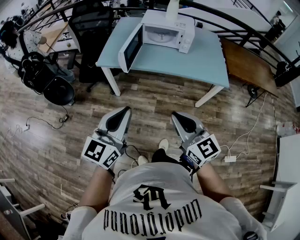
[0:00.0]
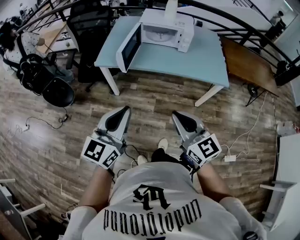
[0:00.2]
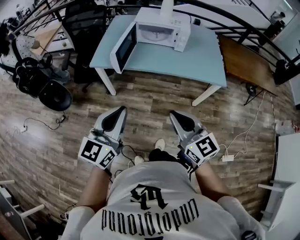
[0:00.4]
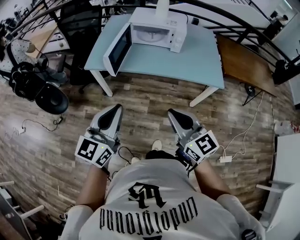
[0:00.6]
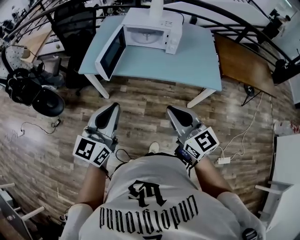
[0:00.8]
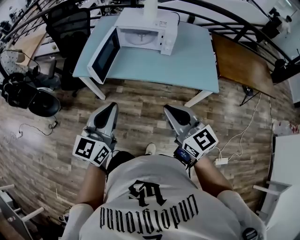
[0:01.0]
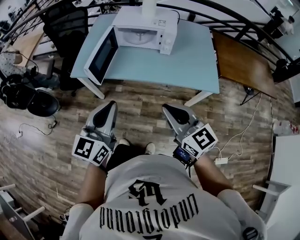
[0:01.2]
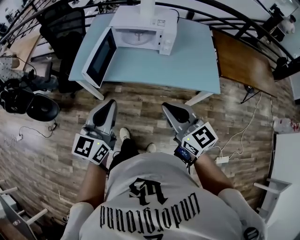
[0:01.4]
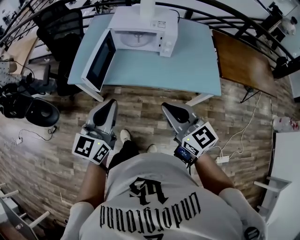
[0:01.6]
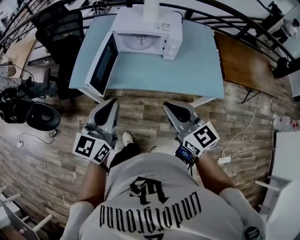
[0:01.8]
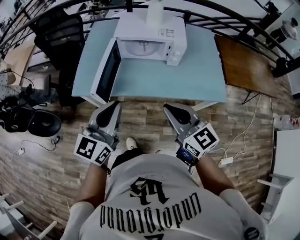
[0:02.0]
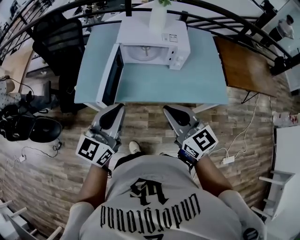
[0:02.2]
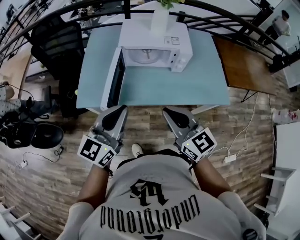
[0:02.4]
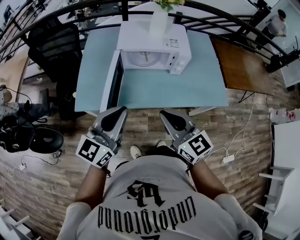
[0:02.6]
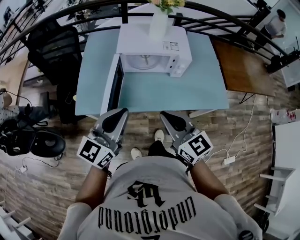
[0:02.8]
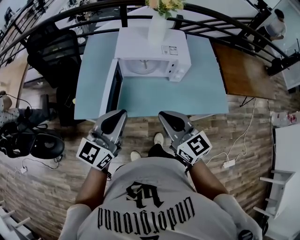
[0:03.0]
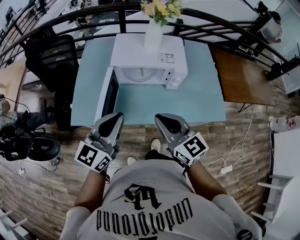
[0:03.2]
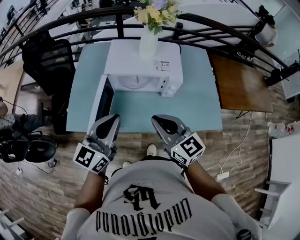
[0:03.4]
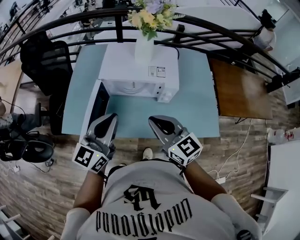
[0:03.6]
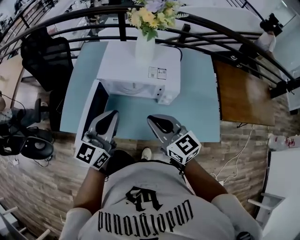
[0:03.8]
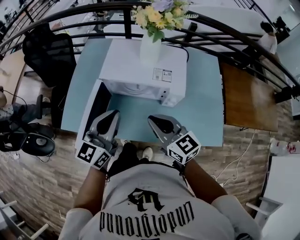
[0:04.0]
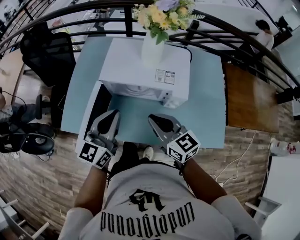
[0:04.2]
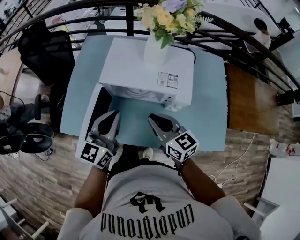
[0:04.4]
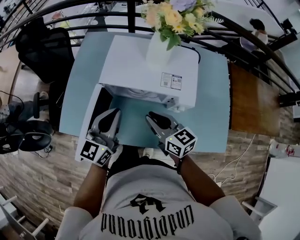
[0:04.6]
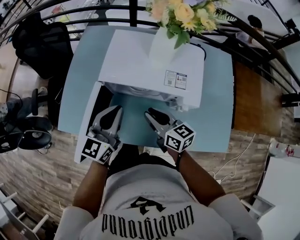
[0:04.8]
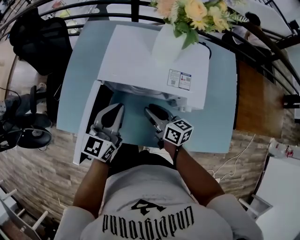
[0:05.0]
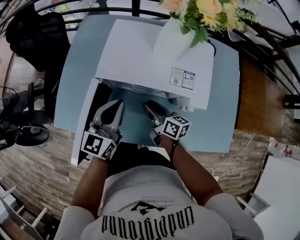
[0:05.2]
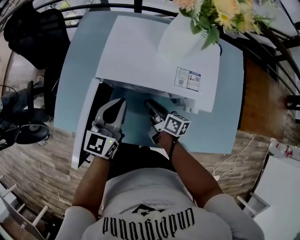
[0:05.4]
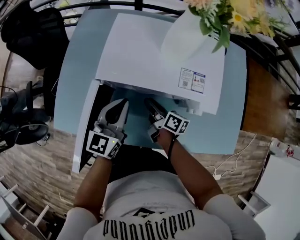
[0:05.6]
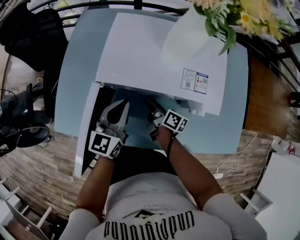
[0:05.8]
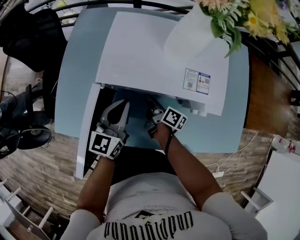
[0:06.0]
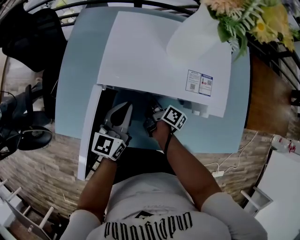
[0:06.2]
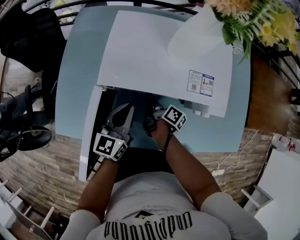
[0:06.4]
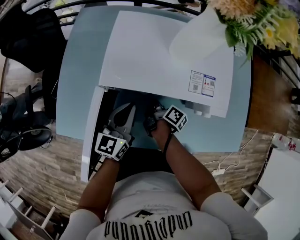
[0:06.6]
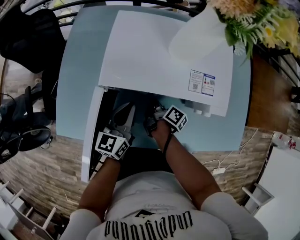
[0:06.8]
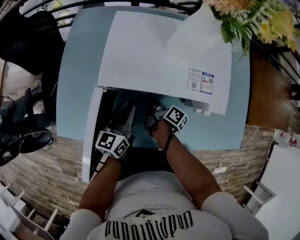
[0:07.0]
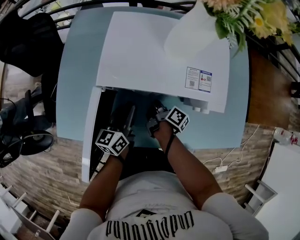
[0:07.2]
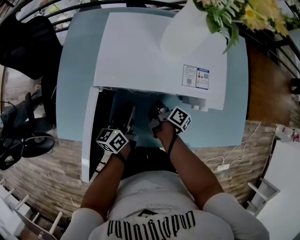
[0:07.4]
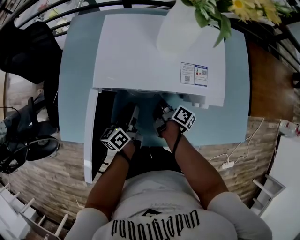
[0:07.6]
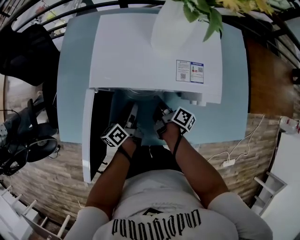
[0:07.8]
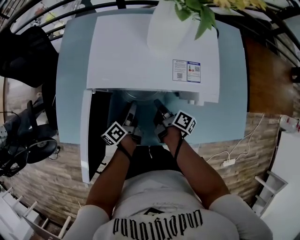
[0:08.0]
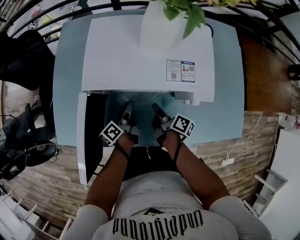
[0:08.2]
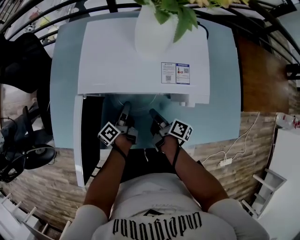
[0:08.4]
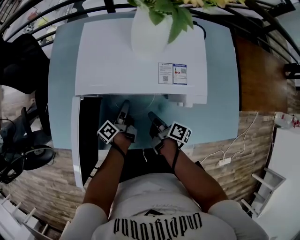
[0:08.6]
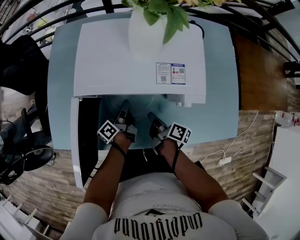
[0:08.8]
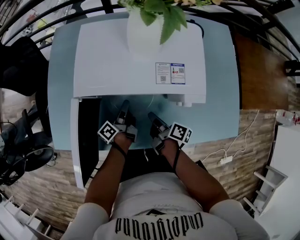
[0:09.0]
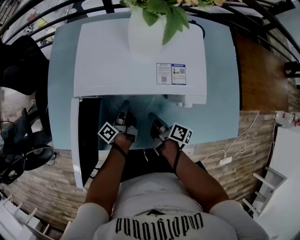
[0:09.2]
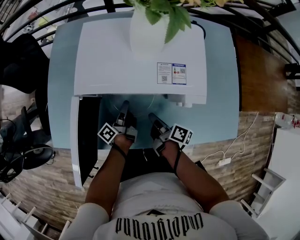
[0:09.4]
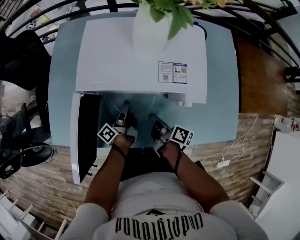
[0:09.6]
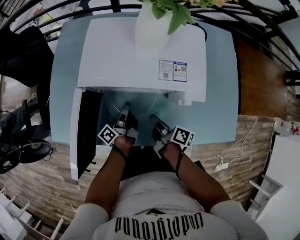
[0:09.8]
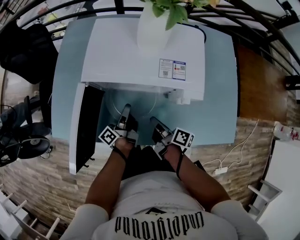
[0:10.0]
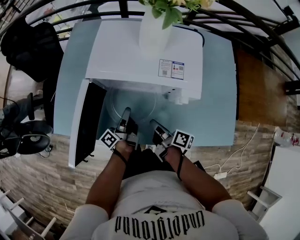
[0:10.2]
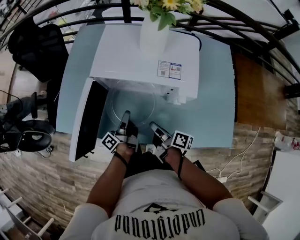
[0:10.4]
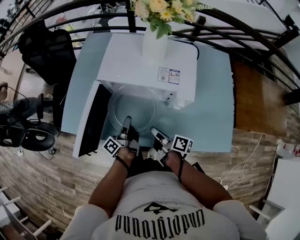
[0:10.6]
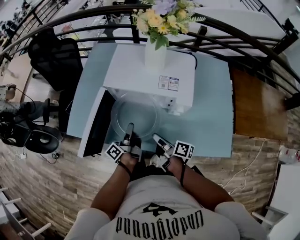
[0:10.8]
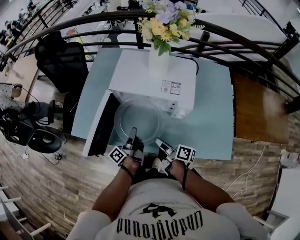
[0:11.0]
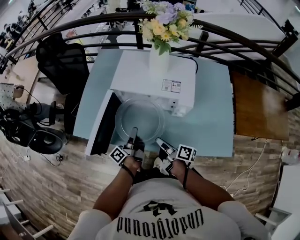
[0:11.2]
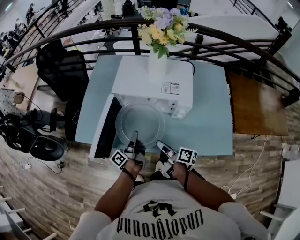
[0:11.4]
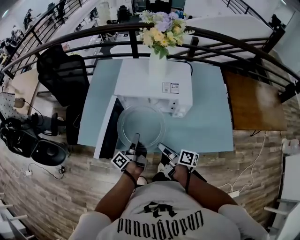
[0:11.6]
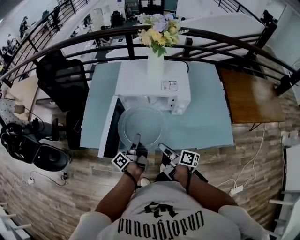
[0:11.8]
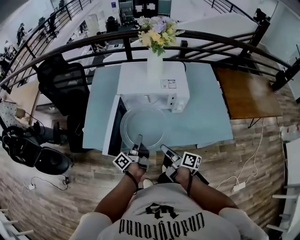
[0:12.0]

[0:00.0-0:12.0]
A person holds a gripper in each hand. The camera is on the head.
0:00.0 to 0:01.6: Both grippers travel together forward and to the right, approximately 25 cm.
0:01.6 to 0:03.0: Both grippers travel together forward and to the left, approximately 20 cm.
0:03.0 to 0:04.4: The left gripper is displaced forward, downward and to the right by some 20 cm, while the right gripper is displaced forward and downward by approximately 25 cm.
0:04.4 to 0:06.0: The left gripper shifts approximately 20 cm downward and forward; the right gripper goes roughly 30 cm downward and forward, twists about 60 degrees clockwise, seen from behind, and opens its fingers.
0:06.0 to 0:07.6: The right gripper ends up roughly 5 cm from where it was, and closes its fingers; the left gripper shifts approximately 10 cm downward, rotates around the line of its fingers by about 40 degrees, counterclockwise from behind, and opens up.
0:07.6 to 0:09.0: The left gripper ends up some 5 cm from where it was, and turns by some 30 degrees. Meanwhile the right gripper shifts roughly 10 cm backward.
0:09.0 to 0:10.4: Both grippers travel together backward and upward, some 10 cm.
0:10.4 to 0:12.0: The right gripper moves backward, upward and to the left, about 20 cm; the left gripper travels upward, backward and to the left by about 20 cm.

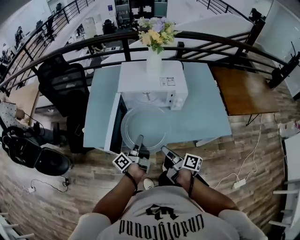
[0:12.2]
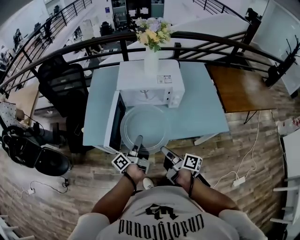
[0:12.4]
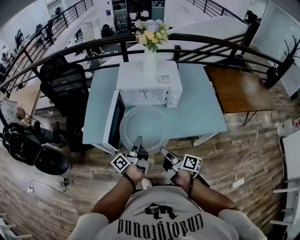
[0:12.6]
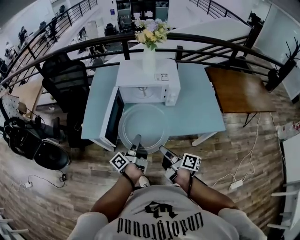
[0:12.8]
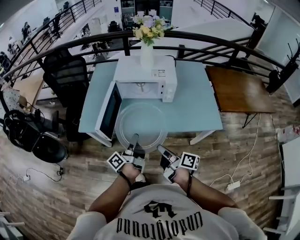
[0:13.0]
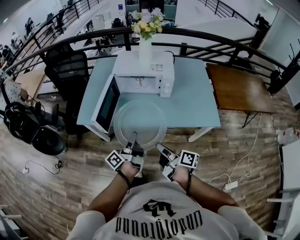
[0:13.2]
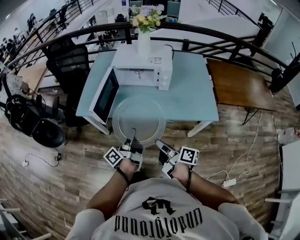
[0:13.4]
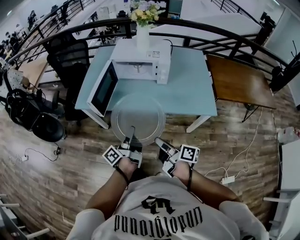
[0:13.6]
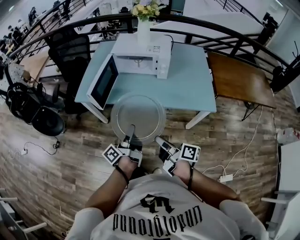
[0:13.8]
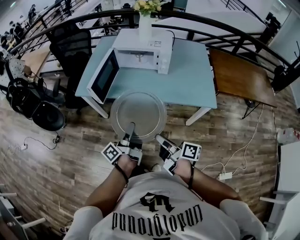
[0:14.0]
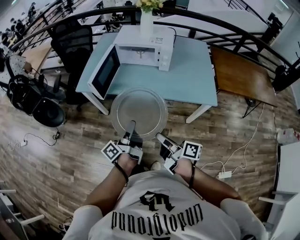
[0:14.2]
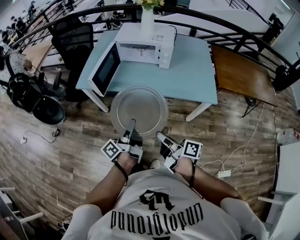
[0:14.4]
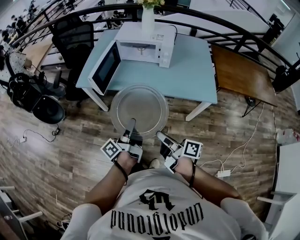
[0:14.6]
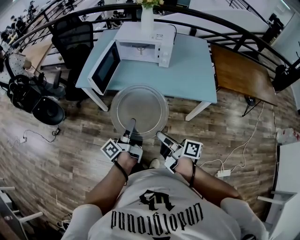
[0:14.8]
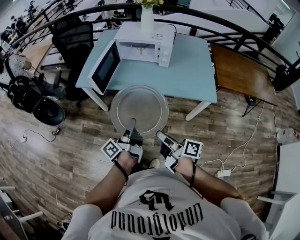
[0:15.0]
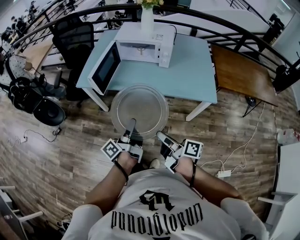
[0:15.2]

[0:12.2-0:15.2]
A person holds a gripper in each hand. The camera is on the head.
0:12.2 to 0:13.8: The grippers both shift backward by about 25 cm.
0:13.8 to 0:15.2: The grippers stay close to where they were, moving slightly.

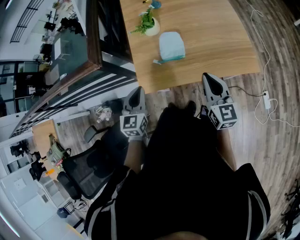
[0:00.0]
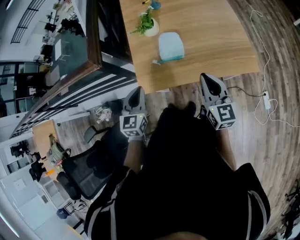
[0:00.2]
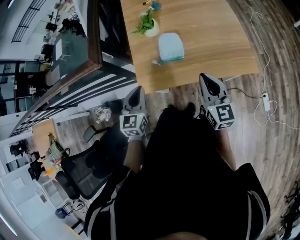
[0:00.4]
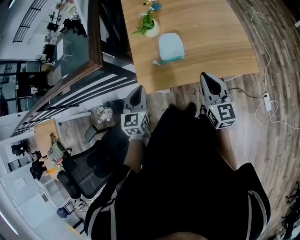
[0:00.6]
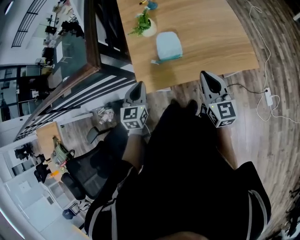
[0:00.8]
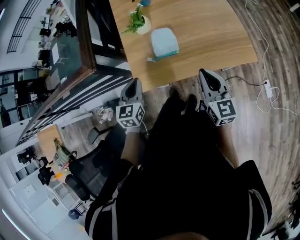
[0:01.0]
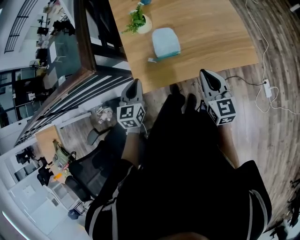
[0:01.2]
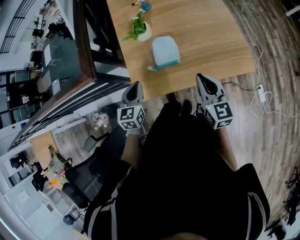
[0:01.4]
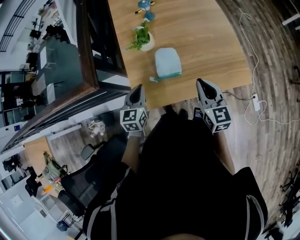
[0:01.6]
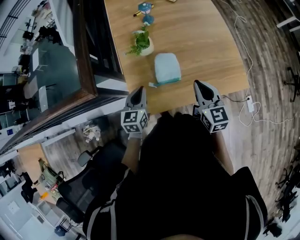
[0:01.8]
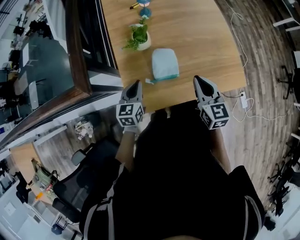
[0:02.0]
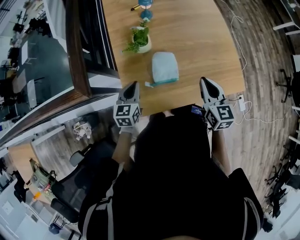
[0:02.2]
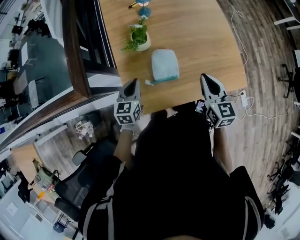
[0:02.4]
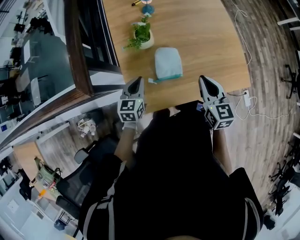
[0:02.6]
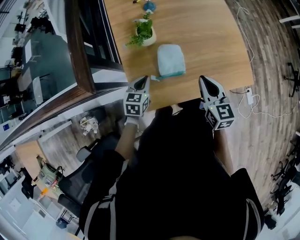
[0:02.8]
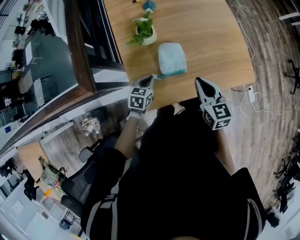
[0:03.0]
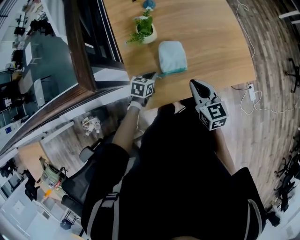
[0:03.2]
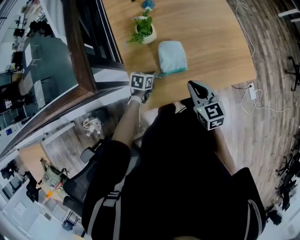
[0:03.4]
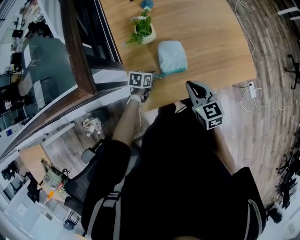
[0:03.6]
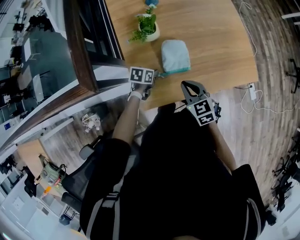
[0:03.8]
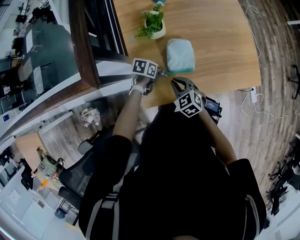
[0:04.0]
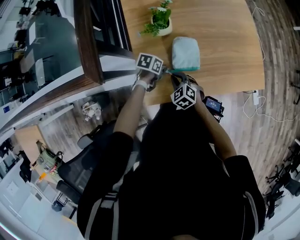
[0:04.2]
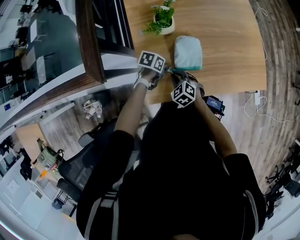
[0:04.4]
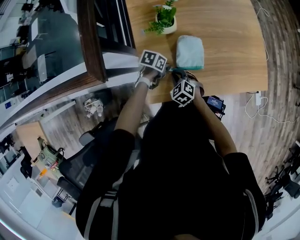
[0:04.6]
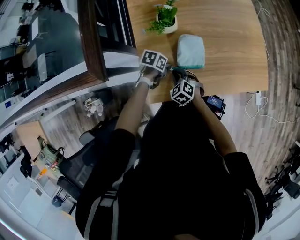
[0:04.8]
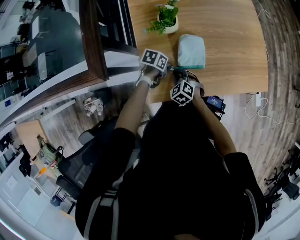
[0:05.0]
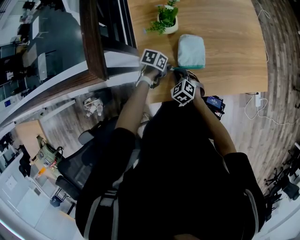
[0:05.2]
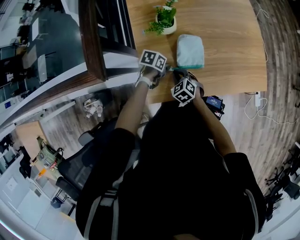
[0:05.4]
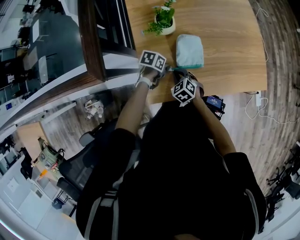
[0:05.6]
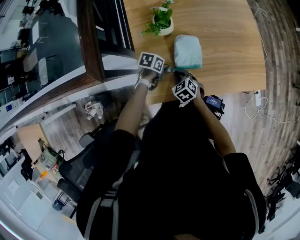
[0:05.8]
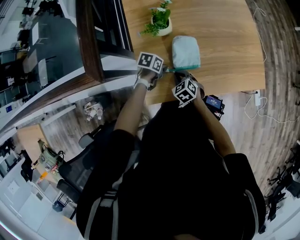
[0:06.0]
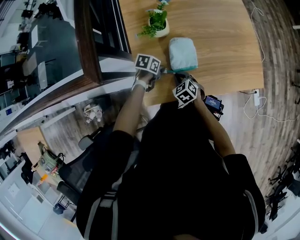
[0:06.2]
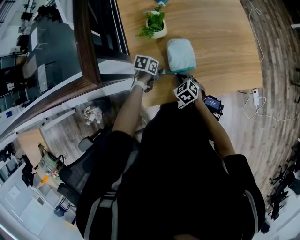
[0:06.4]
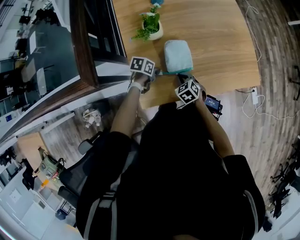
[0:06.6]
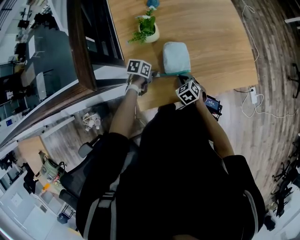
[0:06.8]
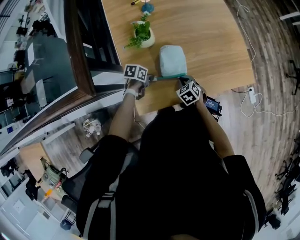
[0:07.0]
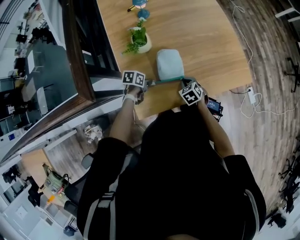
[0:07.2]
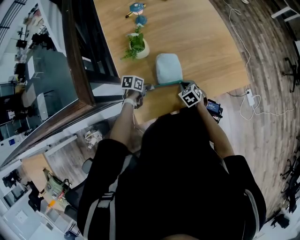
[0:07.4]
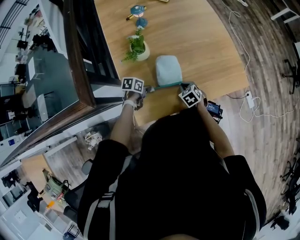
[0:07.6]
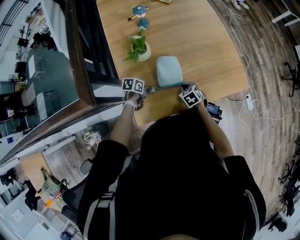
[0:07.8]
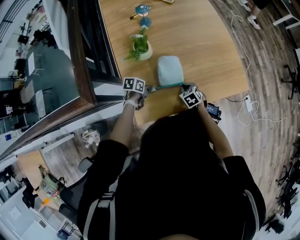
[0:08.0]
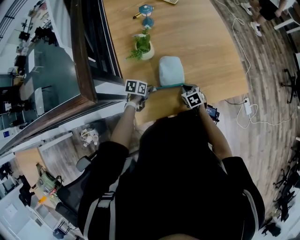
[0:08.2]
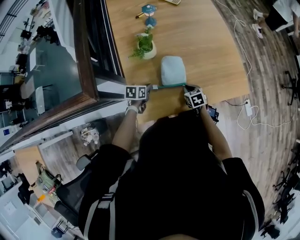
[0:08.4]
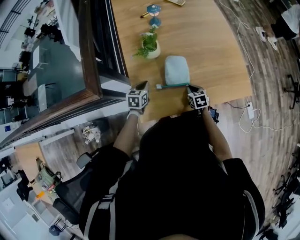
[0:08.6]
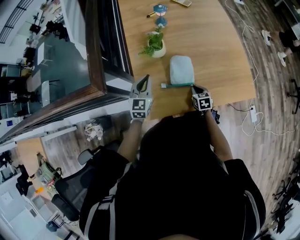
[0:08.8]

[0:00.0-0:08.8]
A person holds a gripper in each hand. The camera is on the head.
0:00.0 to 0:01.4: The left gripper is displaced forward by about 10 cm.
0:01.4 to 0:03.0: The left gripper travels downward and forward by approximately 15 cm, and rotates roughly 30 degrees, while the right gripper goes roughly 10 cm forward and to the left.
0:03.0 to 0:04.4: The right gripper heads downward, covering approximately 20 cm, and swivels roughly 50 degrees. Meanwhile the left gripper goes roughly 10 cm downward, and changes its angle by roughly 40 degrees.
0:04.4 to 0:05.8: The grippers make only small movements.
0:05.8 to 0:07.4: The right gripper is displaced to the right and forward by approximately 15 cm.
0:07.4 to 0:08.8: The left gripper goes roughly 20 cm upward, and tilts its fingers approximately 30 degrees upward.
